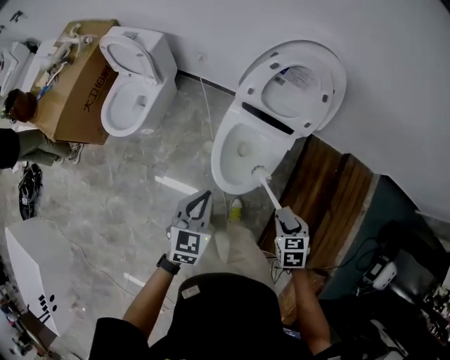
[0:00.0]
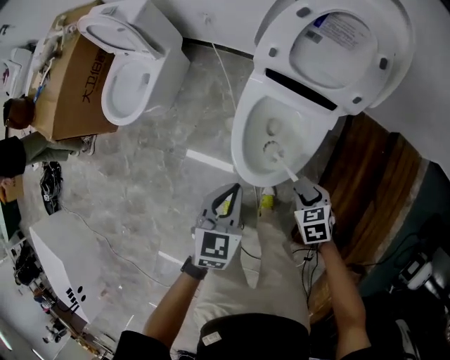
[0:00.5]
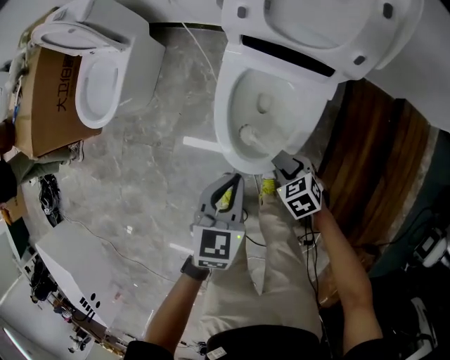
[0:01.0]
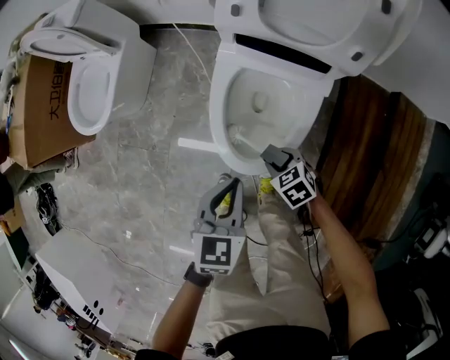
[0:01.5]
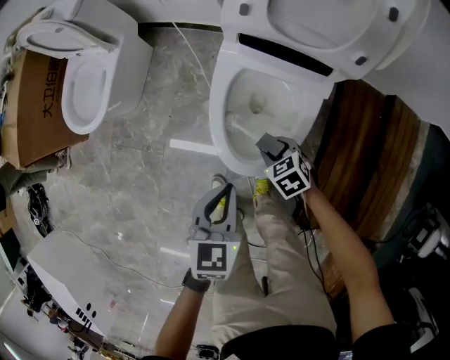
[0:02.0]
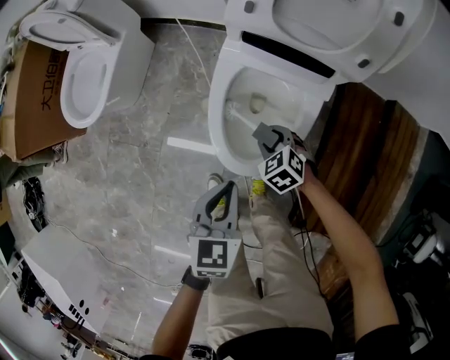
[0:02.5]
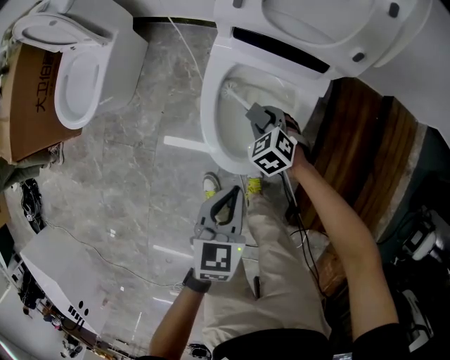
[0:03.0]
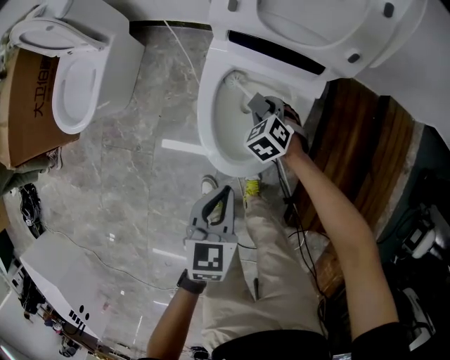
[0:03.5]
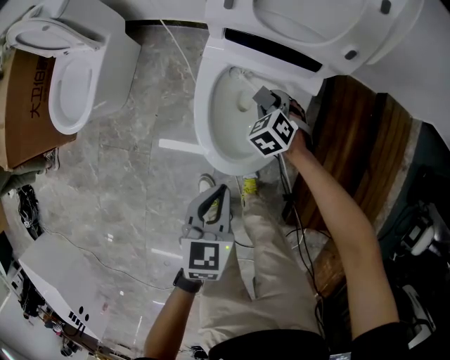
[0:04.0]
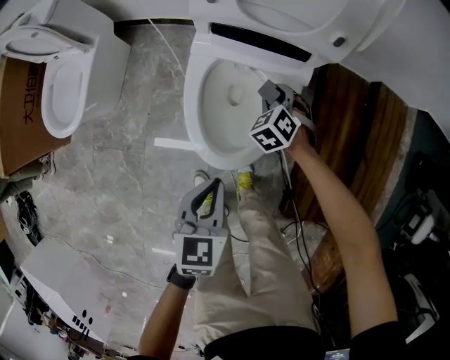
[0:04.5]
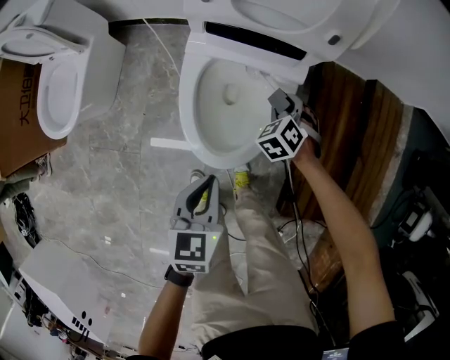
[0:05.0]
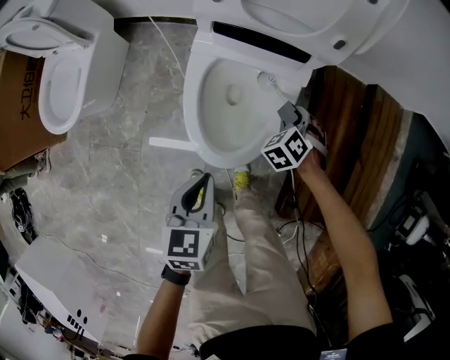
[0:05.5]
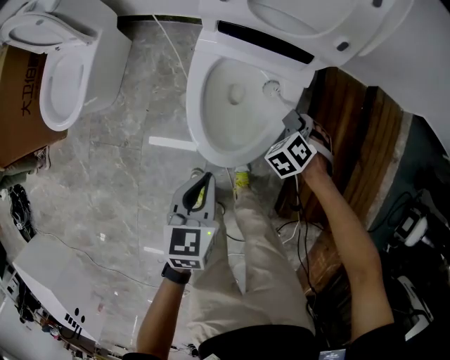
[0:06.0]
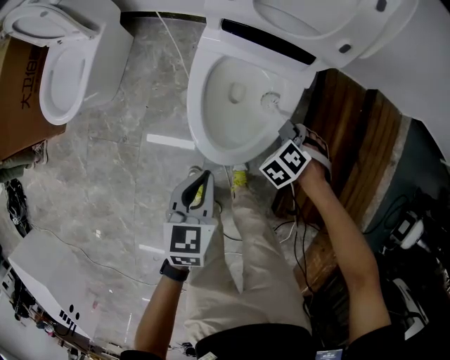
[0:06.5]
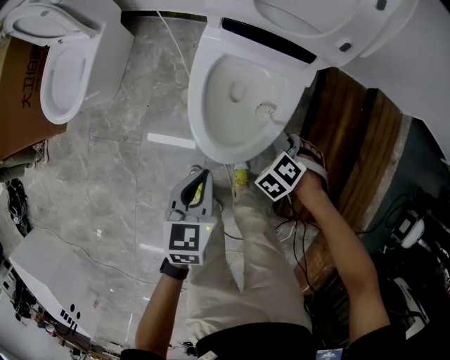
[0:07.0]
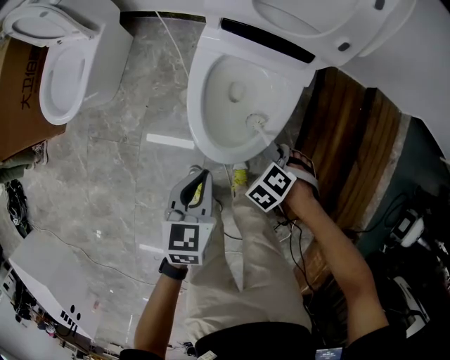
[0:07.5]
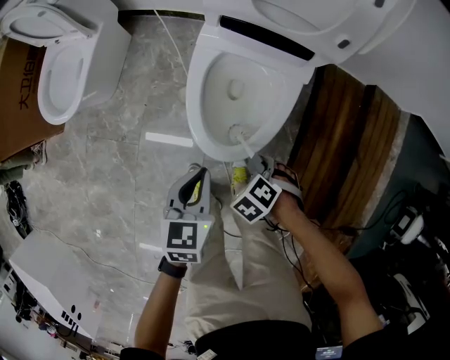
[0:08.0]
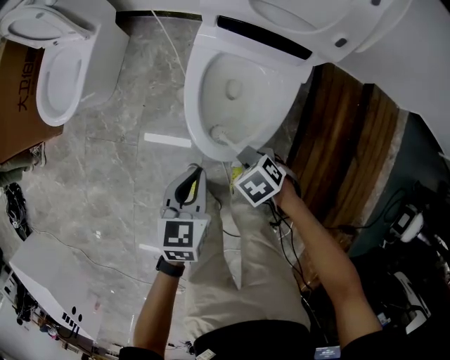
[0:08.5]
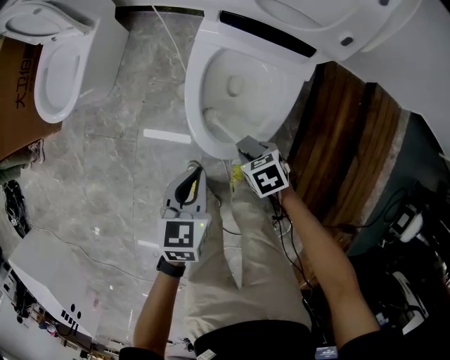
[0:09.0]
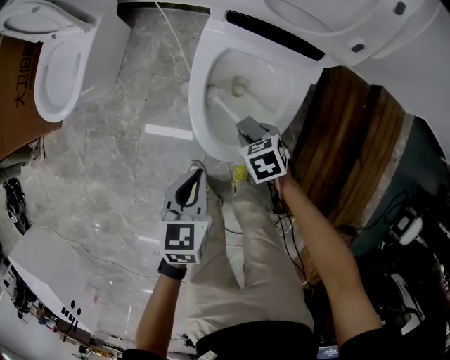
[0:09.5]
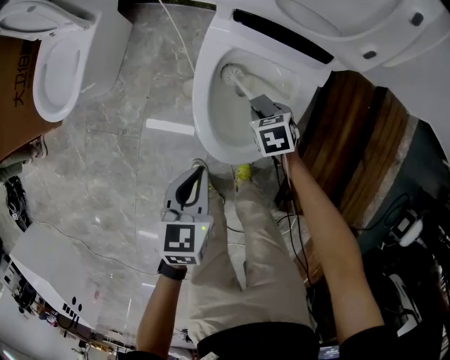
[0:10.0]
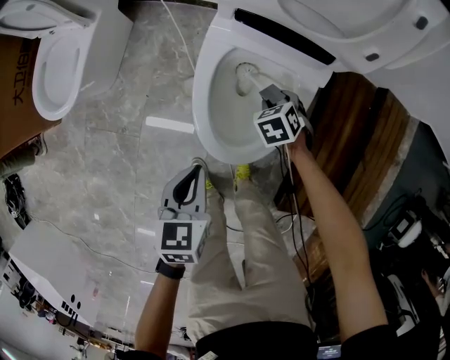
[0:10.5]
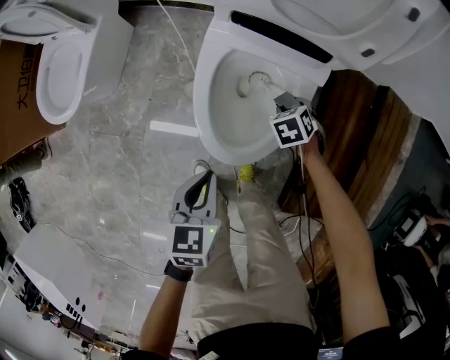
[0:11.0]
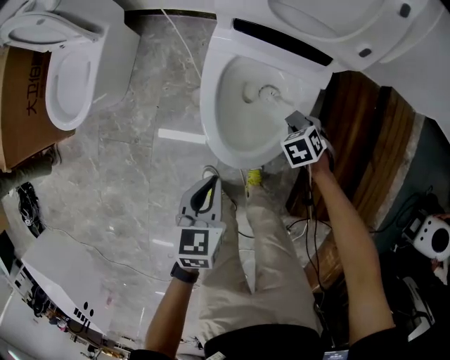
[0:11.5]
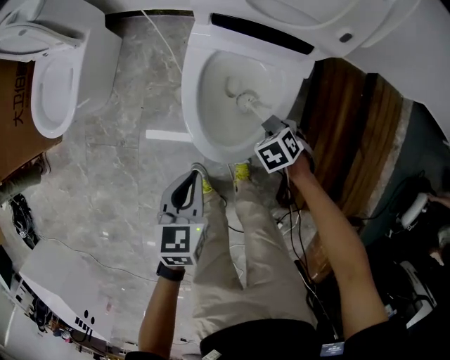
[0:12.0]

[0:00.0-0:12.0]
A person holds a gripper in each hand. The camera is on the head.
0:00.0 to 0:02.0: The left gripper is displaced downward by approximately 25 cm; the right gripper moves downward and forward, roughly 35 cm, and changes its angle by approximately 20 degrees.
0:02.0 to 0:04.0: The right gripper shifts by about 15 cm, and rotates roughly 30 degrees.
0:04.0 to 0:06.0: The right gripper moves to the right, about 15 cm, and changes its angle by roughly 20 degrees.
0:06.0 to 0:08.0: The right gripper changes place by some 20 cm, and rotates roughly 20 degrees.
0:08.0 to 0:10.0: The right gripper changes place by about 20 cm, and swivels roughly 40 degrees.
0:10.0 to 0:12.0: The right gripper ends up roughly 10 cm from where it was.

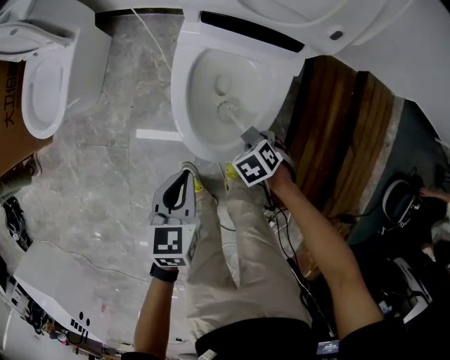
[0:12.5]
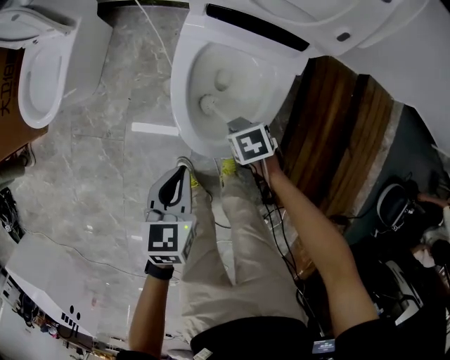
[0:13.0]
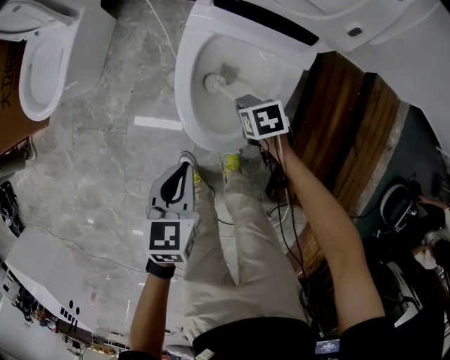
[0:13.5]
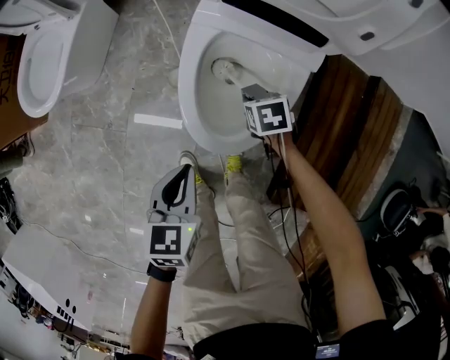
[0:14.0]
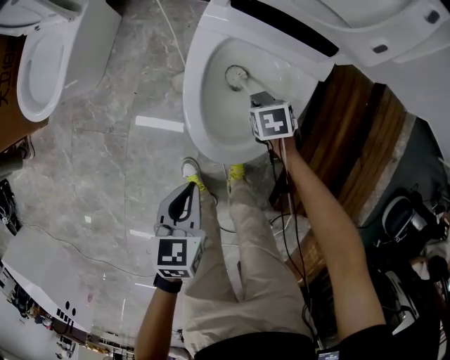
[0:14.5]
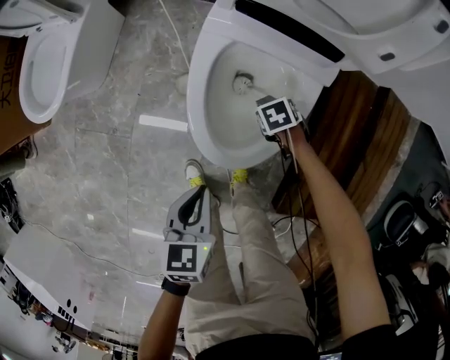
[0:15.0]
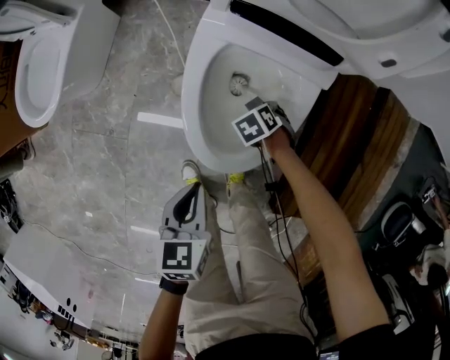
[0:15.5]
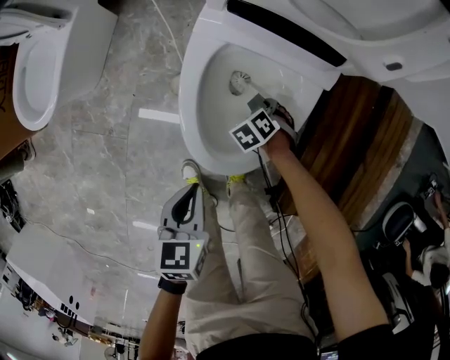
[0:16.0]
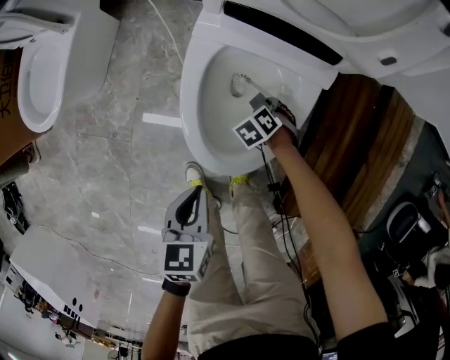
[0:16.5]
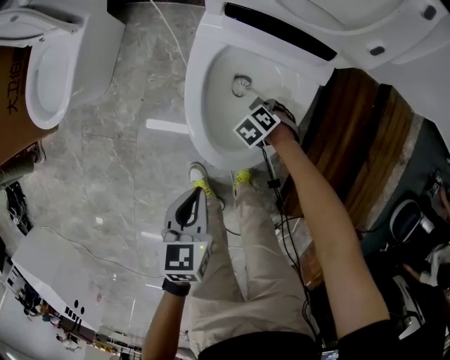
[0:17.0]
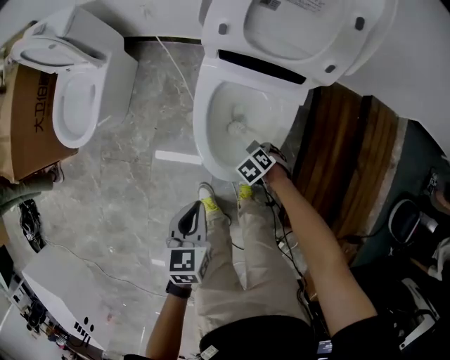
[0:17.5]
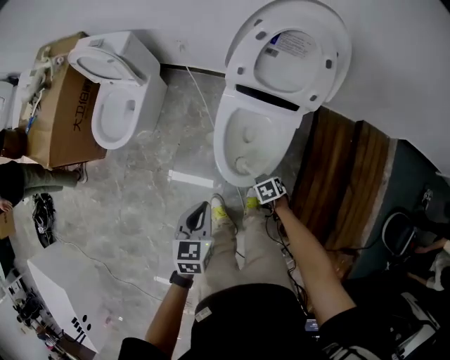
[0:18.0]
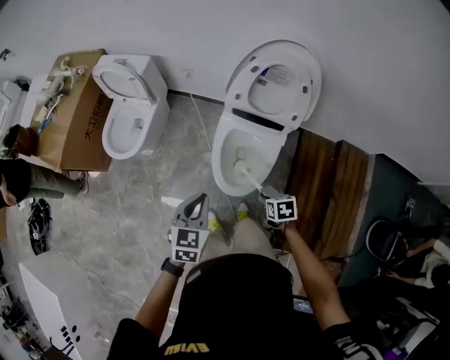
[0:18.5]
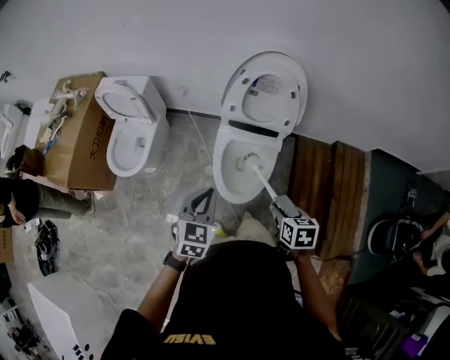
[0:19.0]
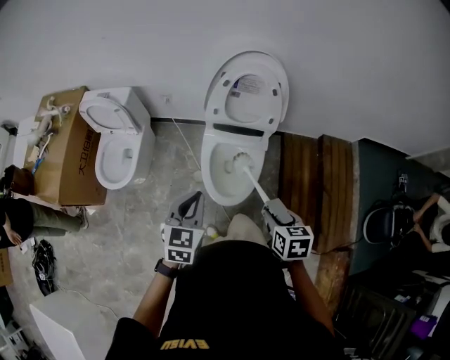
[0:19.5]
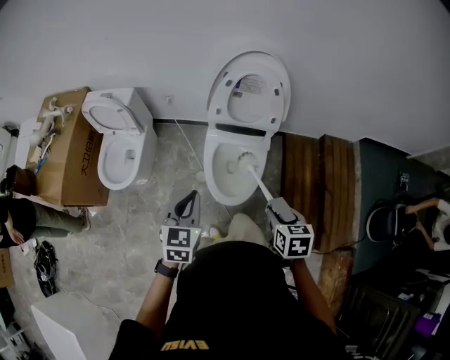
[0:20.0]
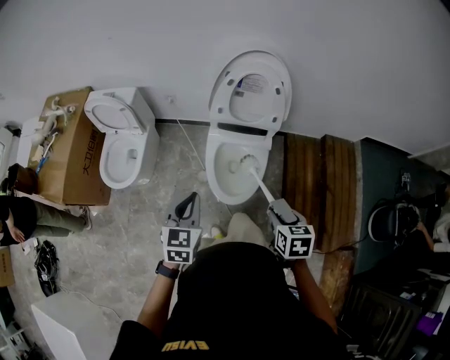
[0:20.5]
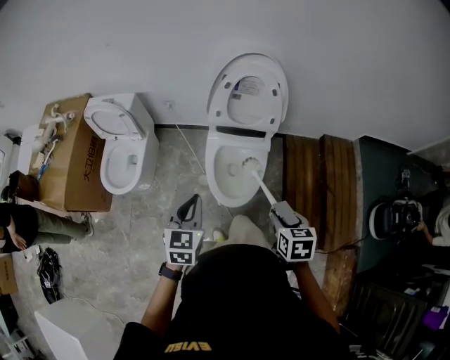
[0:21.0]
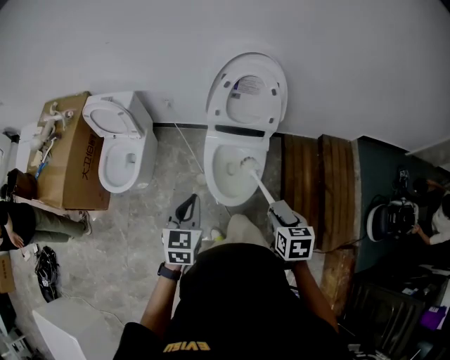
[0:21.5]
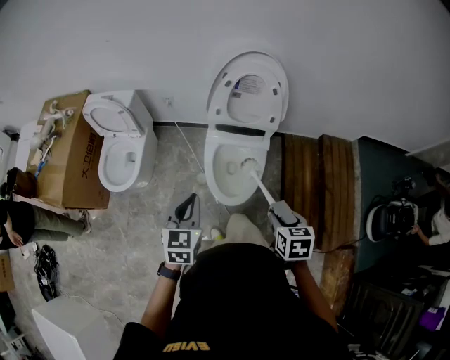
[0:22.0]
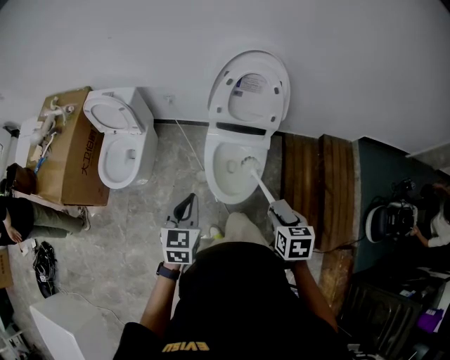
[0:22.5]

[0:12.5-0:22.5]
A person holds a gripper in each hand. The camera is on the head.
0:12.5 to 0:14.5: The left gripper goes about 5 cm downward; the right gripper ends up some 15 cm from where it was, and changes its angle by some 20 degrees.
0:14.5 to 0:16.5: The right gripper travels downward by about 5 cm, and changes its angle by some 30 degrees.
0:16.5 to 0:18.5: The two grippers go about 40 cm upward. The right gripper rotates around the line of its fingers by approximately 40 degrees, clockwise from behind. Meanwhile the left gripper turns by about 30 degrees.
0:18.5 to 0:20.5: The right gripper travels upward and backward by roughly 20 cm, and changes its angle by some 20 degrees. Meanwhile the left gripper travels upward by about 5 cm.
0:20.5 to 0:22.5: The grippers move only a little.

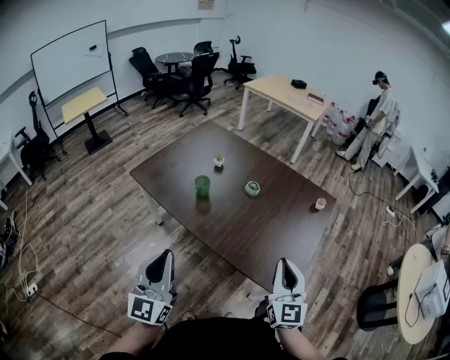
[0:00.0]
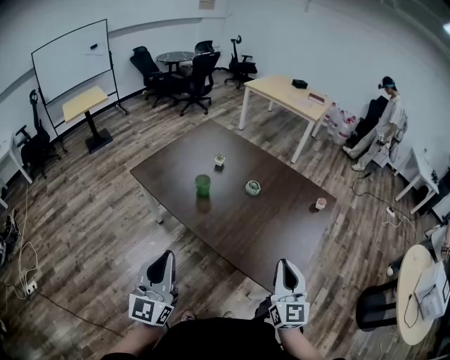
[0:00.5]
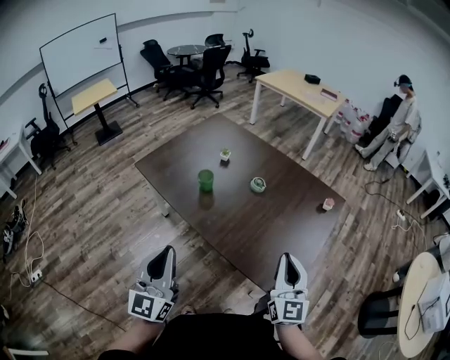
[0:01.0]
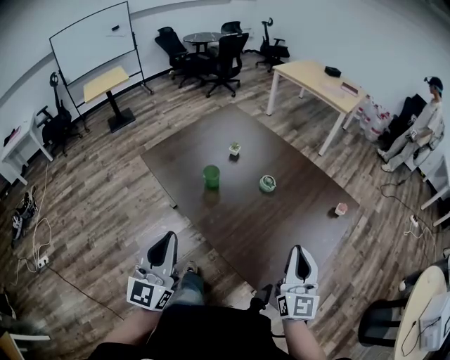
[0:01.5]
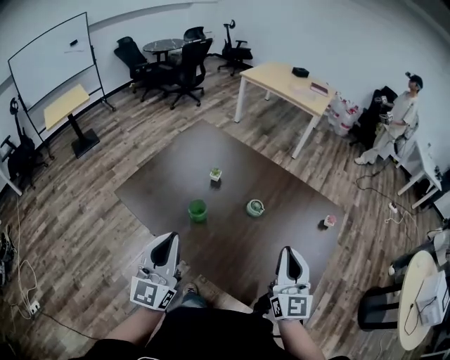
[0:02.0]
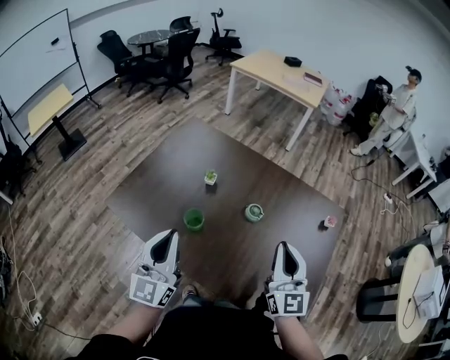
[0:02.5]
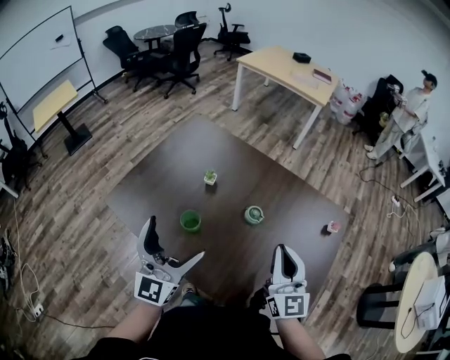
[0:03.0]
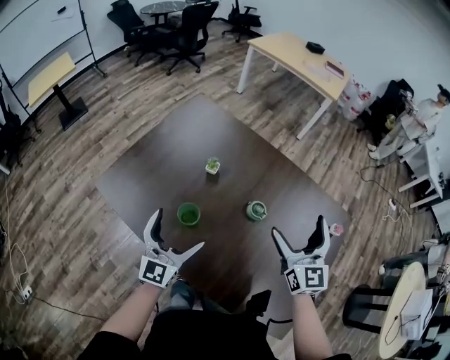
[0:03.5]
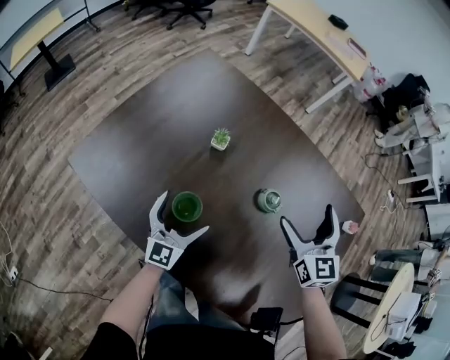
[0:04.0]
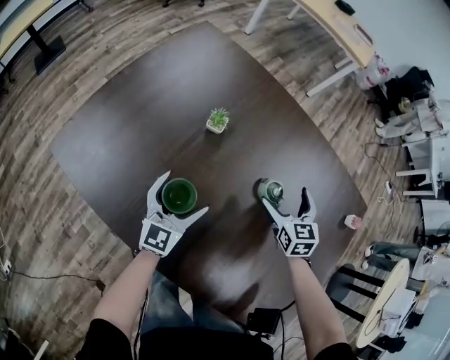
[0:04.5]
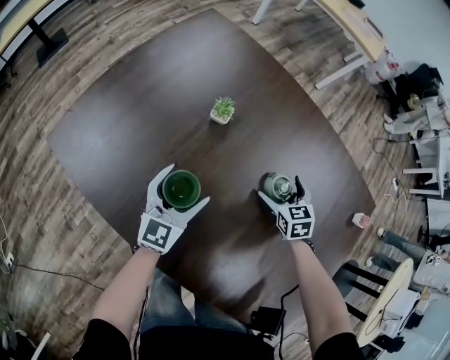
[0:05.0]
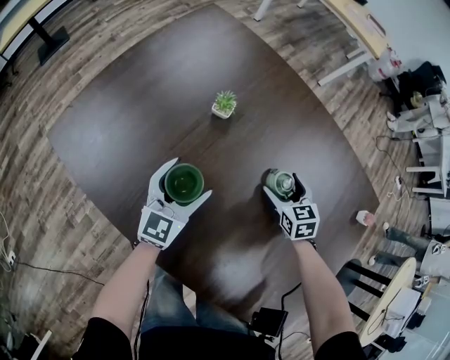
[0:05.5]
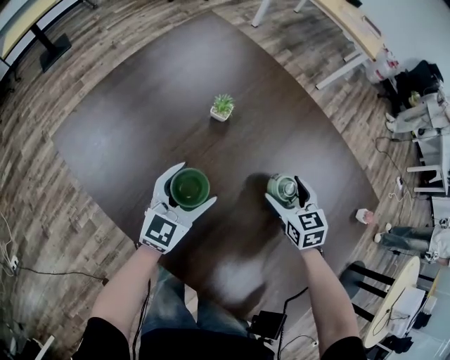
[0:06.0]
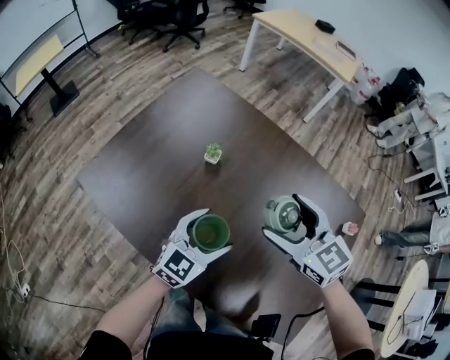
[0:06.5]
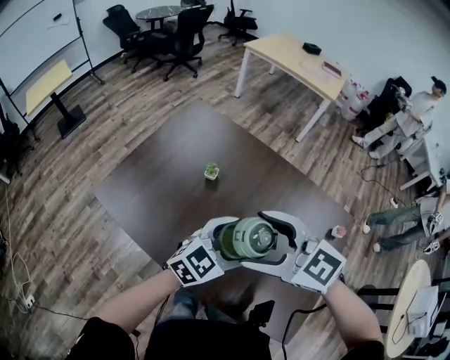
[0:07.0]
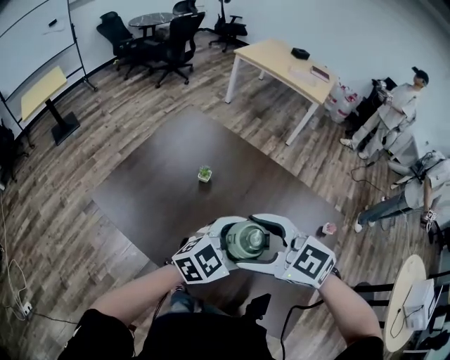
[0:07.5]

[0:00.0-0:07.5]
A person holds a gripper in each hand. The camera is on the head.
0:00.0 to 0:02.0: The grippers both shift forward by about 25 cm.
0:02.0 to 0:04.0: The left gripper heads downward and forward, covering roughly 40 cm, turns by approximately 20 degrees, and opens up; the right gripper shifts some 35 cm forward and downward, changes its angle by roughly 20 degrees, and opens its fingers.
0:04.0 to 0:05.5: The left gripper shifts by about 5 cm. The right gripper travels downward by some 25 cm, and swivels roughly 30 degrees.
0:05.5 to 0:07.5: Both grippers travel together upward, some 35 cm. The right gripper rotates some 50 degrees. Meanwhile the left gripper changes its angle by about 40 degrees.
